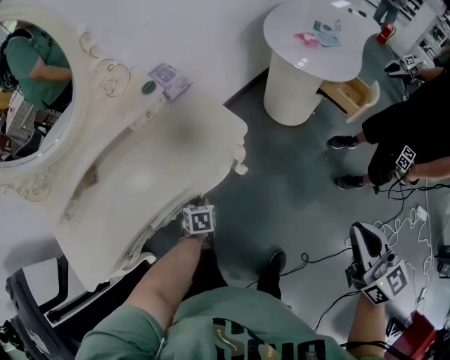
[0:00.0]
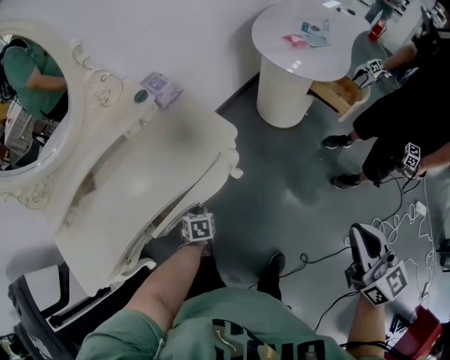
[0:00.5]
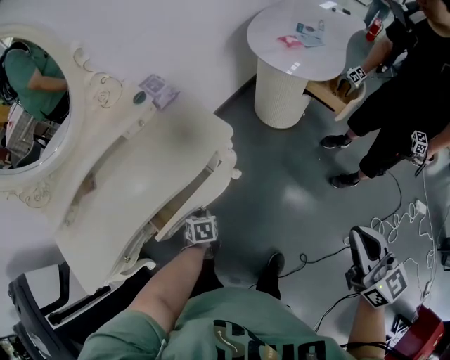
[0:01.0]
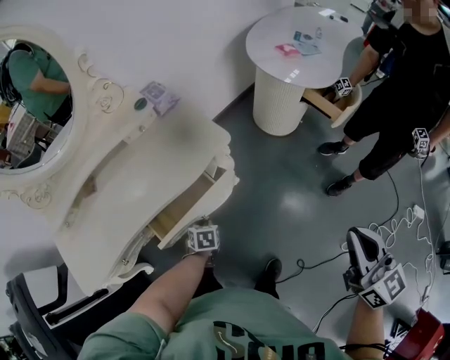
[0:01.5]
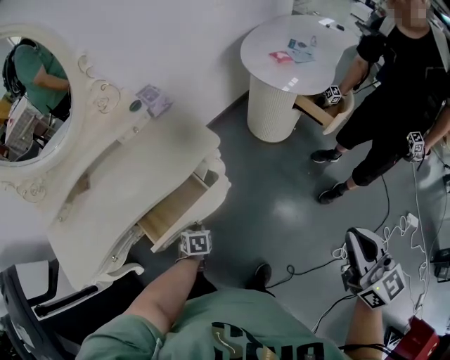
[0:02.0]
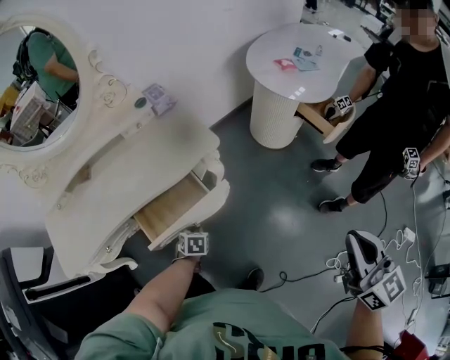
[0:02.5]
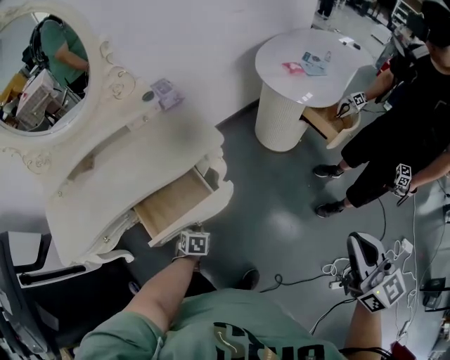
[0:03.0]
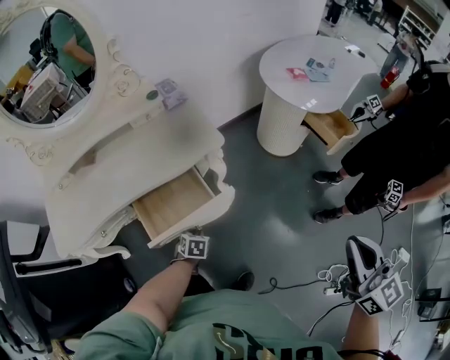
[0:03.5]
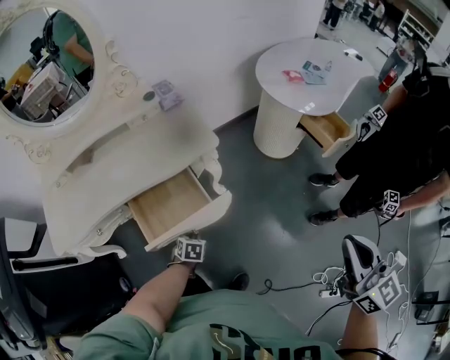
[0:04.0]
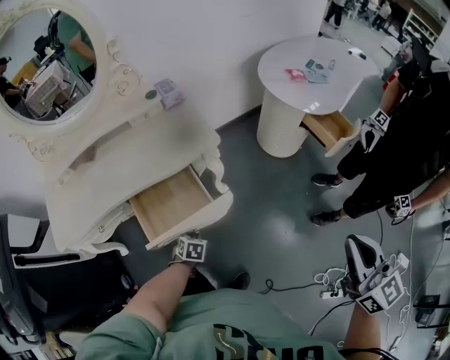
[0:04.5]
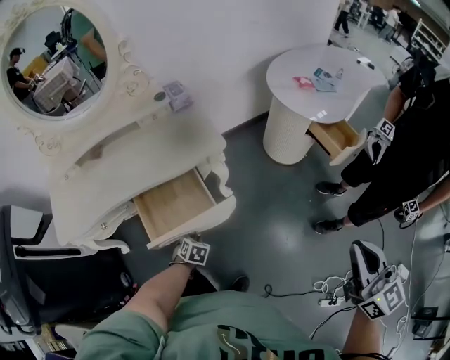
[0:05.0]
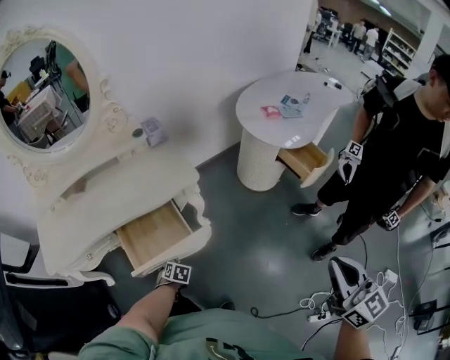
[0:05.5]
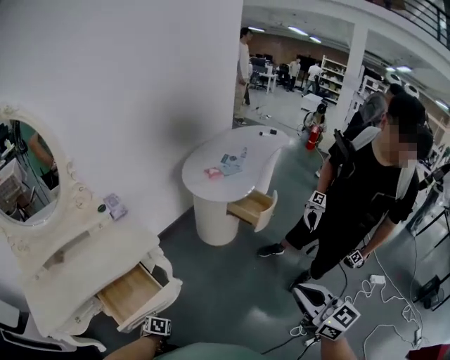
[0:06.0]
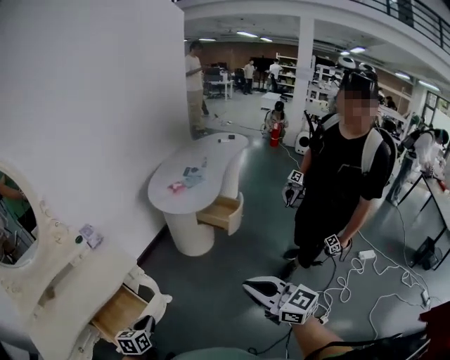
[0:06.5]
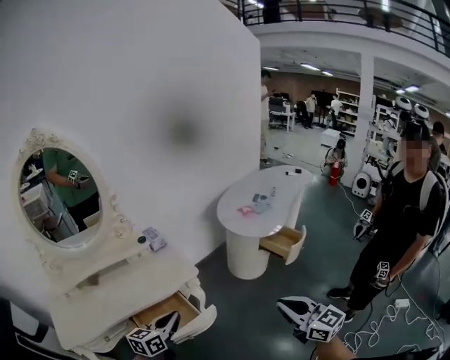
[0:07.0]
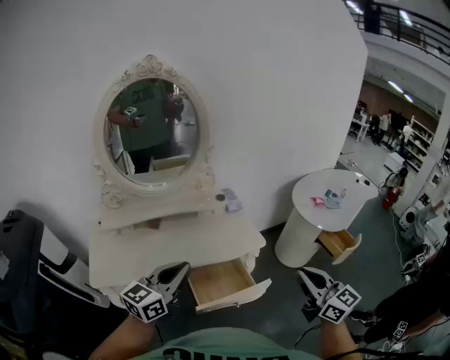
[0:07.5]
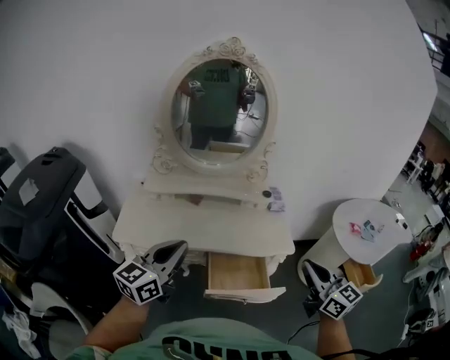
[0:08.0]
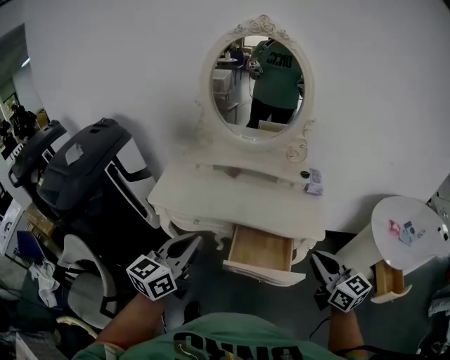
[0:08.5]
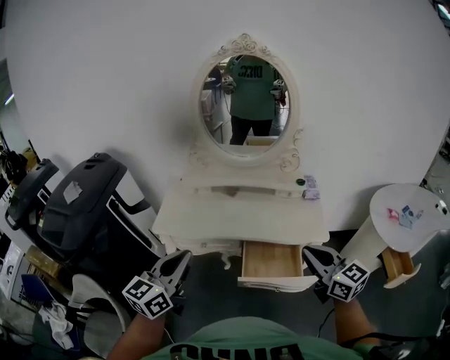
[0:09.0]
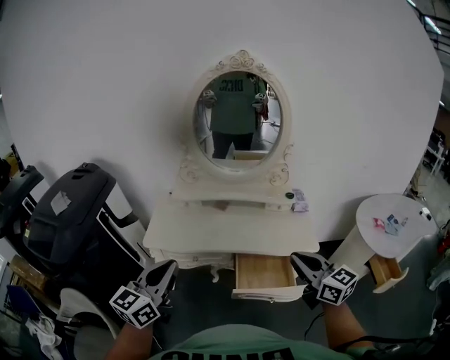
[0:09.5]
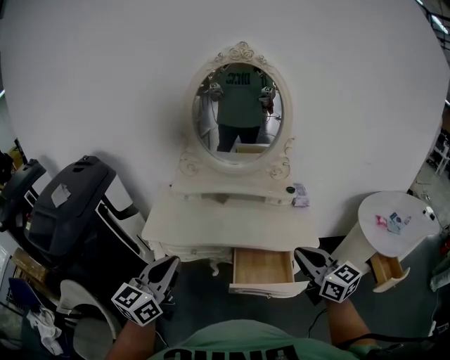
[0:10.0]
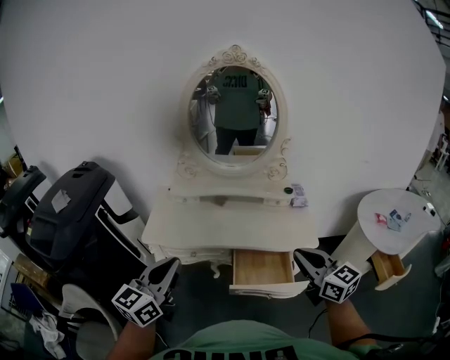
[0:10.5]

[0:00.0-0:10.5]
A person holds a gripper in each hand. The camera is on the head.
0.0 to 2.0 s: The right gripper travels to the right and backward by roughly 10 cm; the left gripper goes some 10 cm backward and to the right.
2.0 to 4.0 s: The left gripper goes approximately 5 cm backward. Meanwhile the right gripper travels to the right by roughly 5 cm.
4.0 to 6.5 s: The left gripper travels upward by some 25 cm, and points its fingers approximately 30 degrees further upward.
6.5 to 8.5 s: The left gripper shifts by approximately 40 cm, and points its fingers approximately 30 degrees further upward. The right gripper ends up about 40 cm from where it was, and changes its angle by roughly 50 degrees.
8.5 to 10.5 s: Both grippers move to the left, roughly 10 cm.

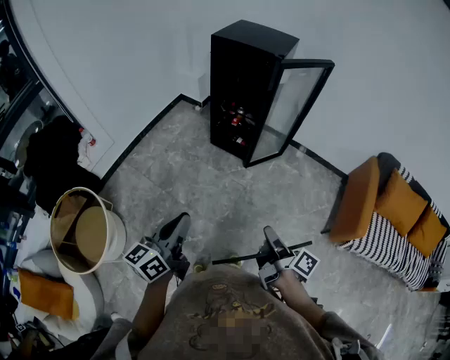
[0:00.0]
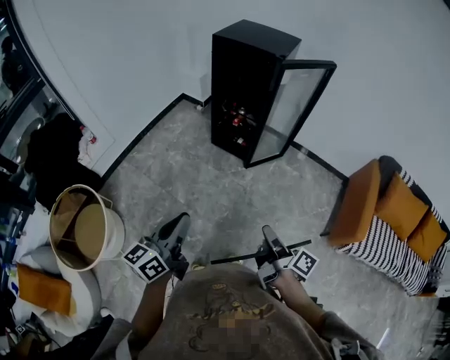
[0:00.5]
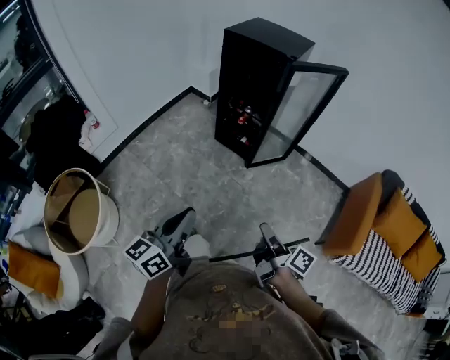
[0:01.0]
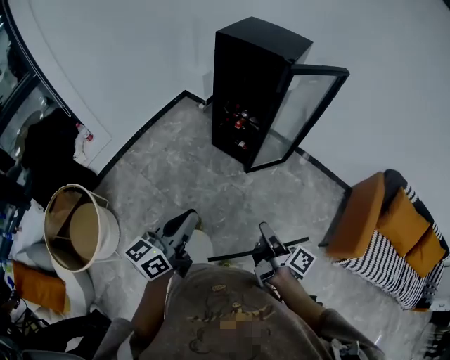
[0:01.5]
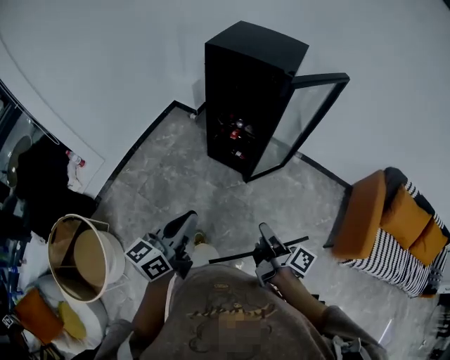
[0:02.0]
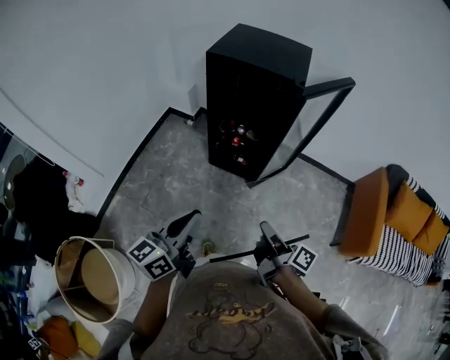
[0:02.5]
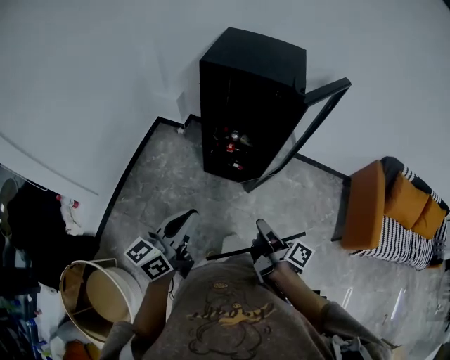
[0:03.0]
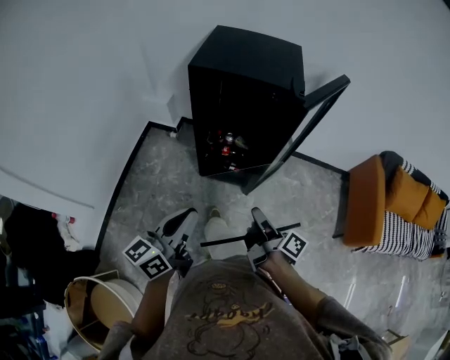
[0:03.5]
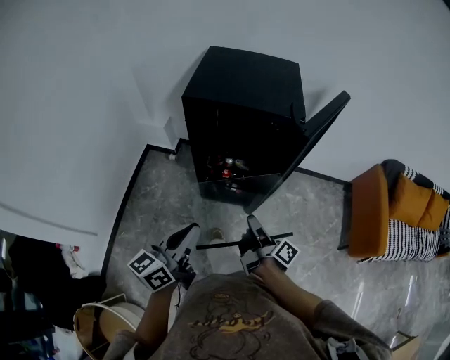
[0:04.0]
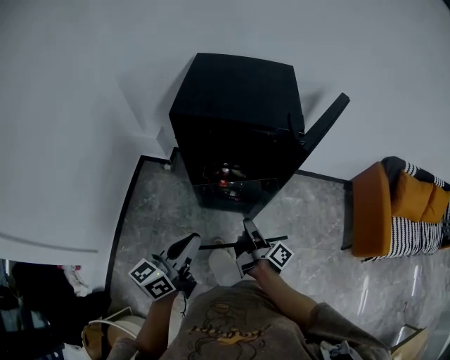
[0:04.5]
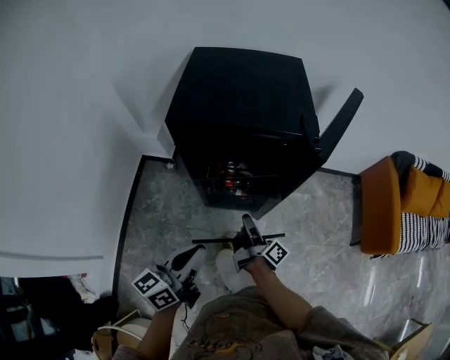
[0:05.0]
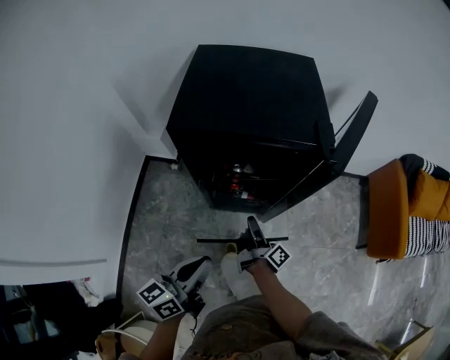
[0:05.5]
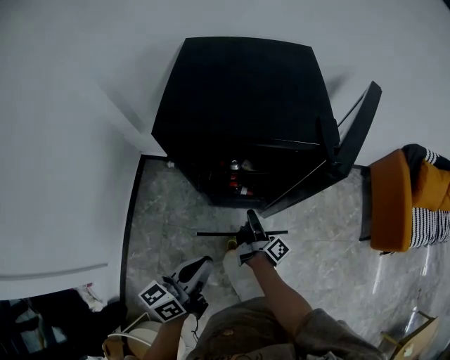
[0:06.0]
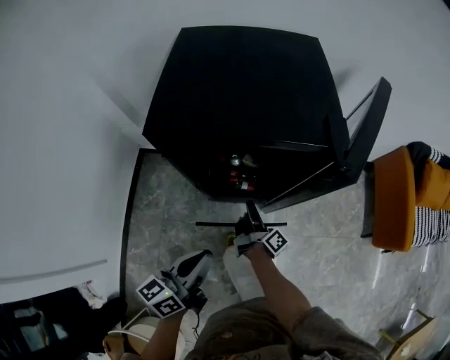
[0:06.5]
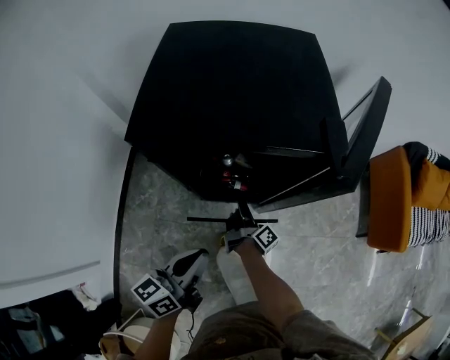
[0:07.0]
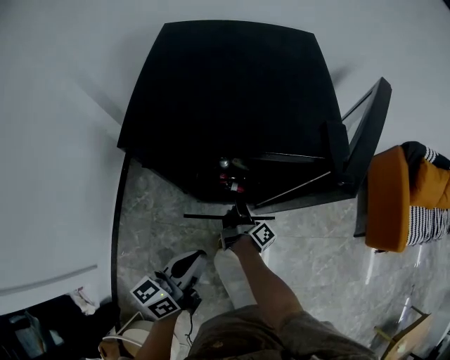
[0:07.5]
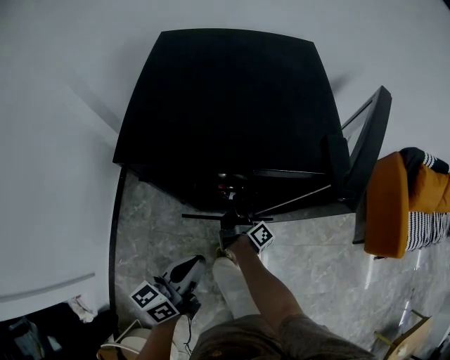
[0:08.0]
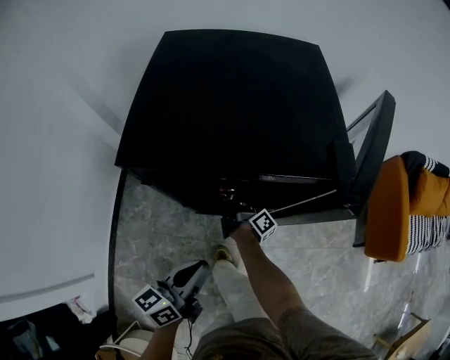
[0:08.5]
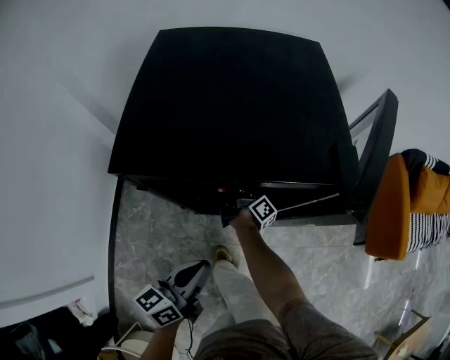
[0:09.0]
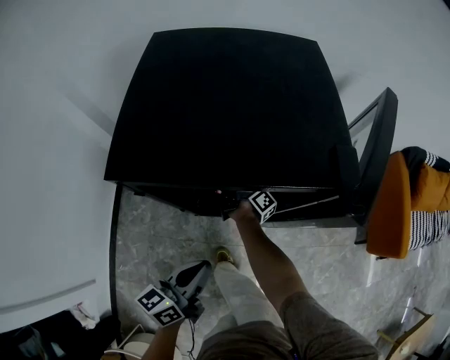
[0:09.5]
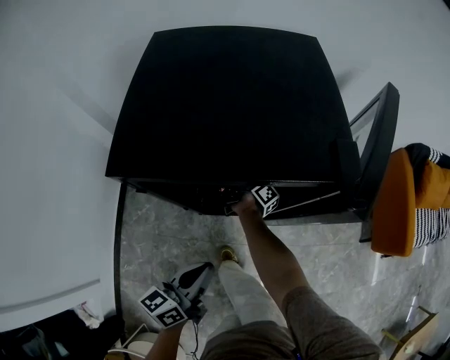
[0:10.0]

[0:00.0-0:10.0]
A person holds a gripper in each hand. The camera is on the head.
0.0 to 2.0 s: The left gripper shifts by about 20 cm.
2.0 to 4.0 s: The left gripper ends up about 30 cm from where it was.
4.0 to 6.0 s: The left gripper shifts by about 15 cm.
6.0 to 8.0 s: The left gripper changes place by about 10 cm.

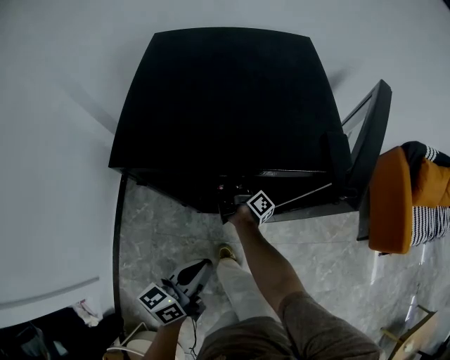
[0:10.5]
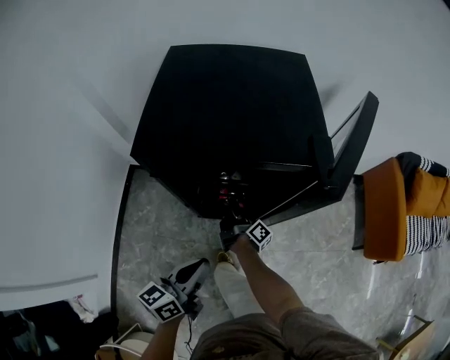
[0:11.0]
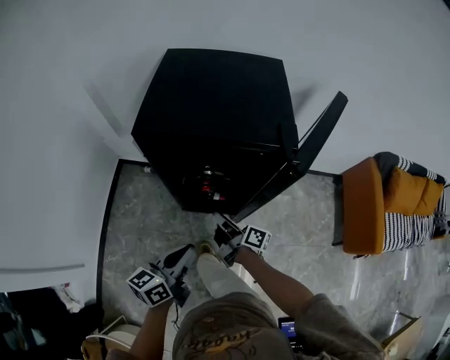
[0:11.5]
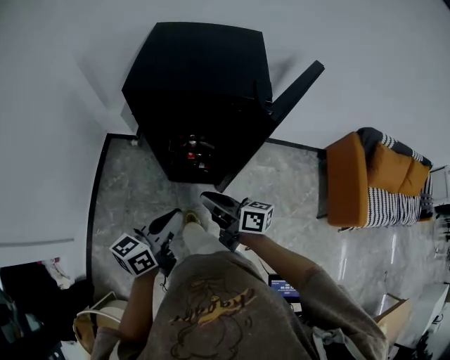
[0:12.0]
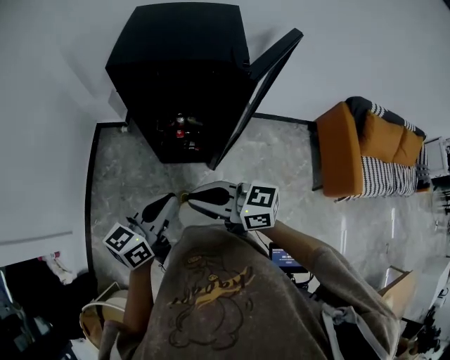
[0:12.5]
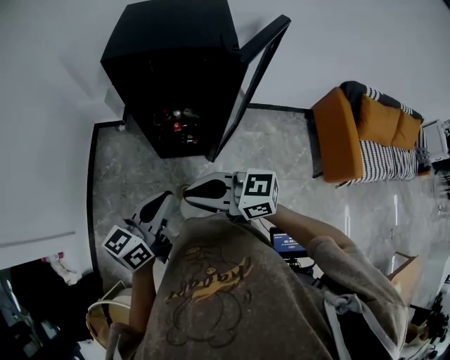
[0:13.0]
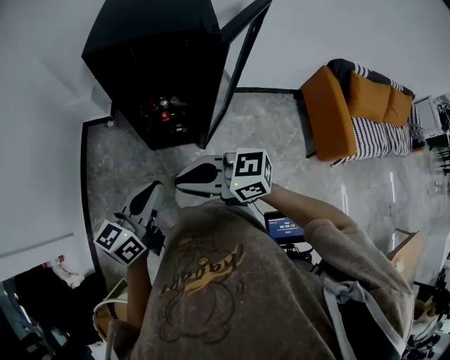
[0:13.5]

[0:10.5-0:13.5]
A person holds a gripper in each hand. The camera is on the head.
10.5 to 12.0 s: The left gripper ends up about 15 cm from where it was.
12.0 to 13.5 s: The left gripper shifts by some 10 cm.

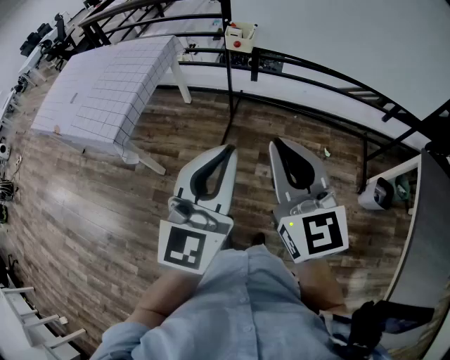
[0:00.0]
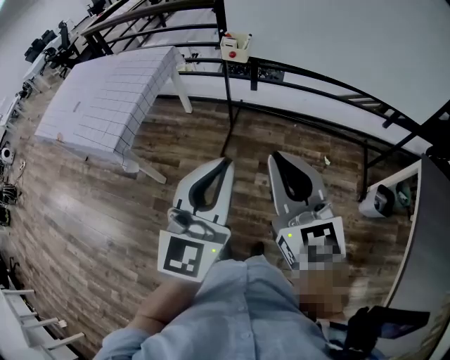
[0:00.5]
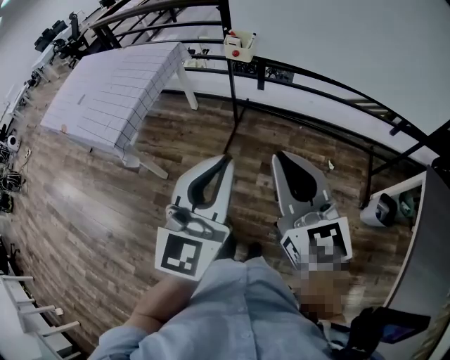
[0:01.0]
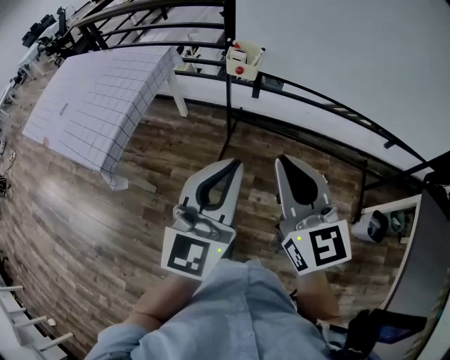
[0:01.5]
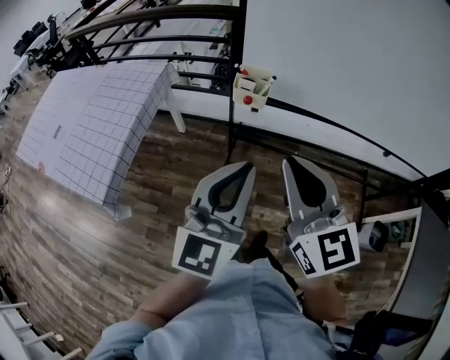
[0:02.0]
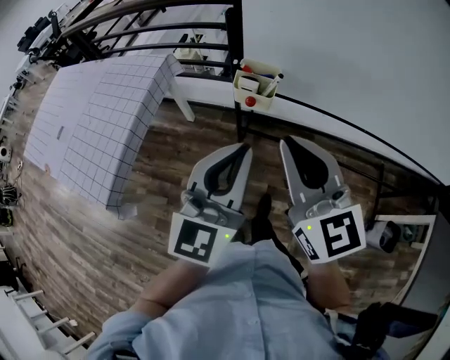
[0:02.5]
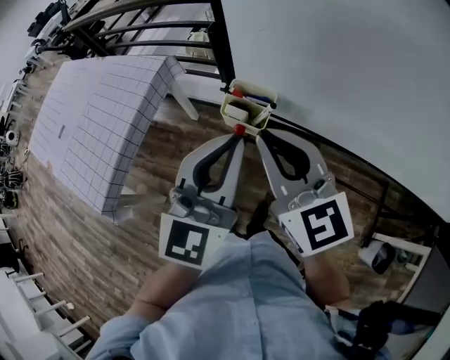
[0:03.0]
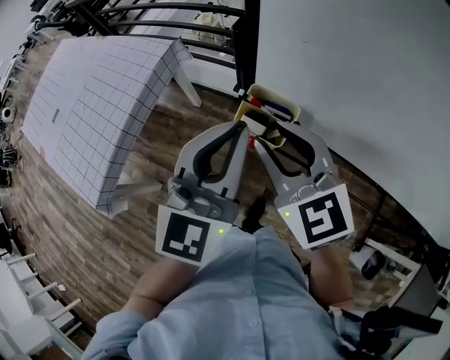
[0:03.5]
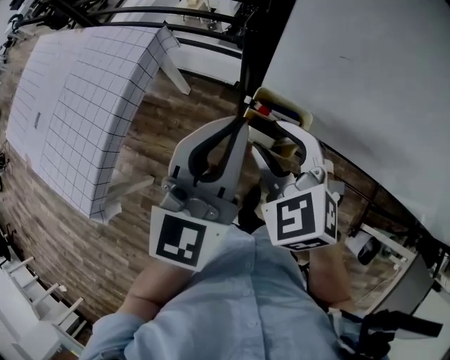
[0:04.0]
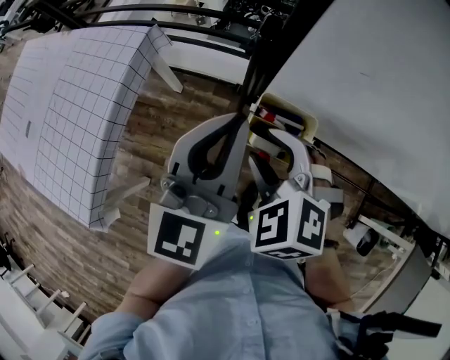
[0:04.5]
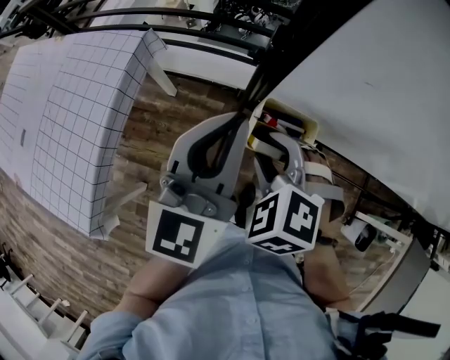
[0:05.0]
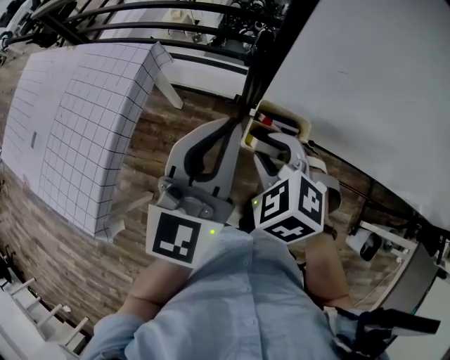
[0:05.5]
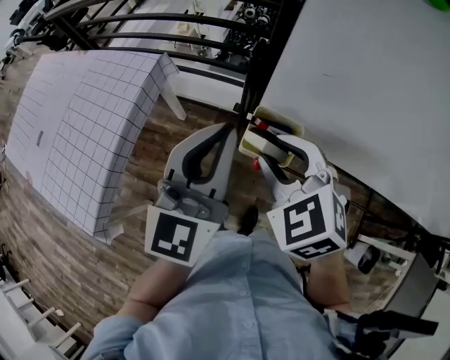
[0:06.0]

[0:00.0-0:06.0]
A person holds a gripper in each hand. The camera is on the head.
0.0 to 2.0 s: Both grippers move forward, some 25 cm.
2.0 to 4.0 s: The left gripper heads forward, covering approximately 30 cm. The right gripper moves forward and downward, roughly 35 cm, angles its fingers downward, by approximately 40 degrees, and opens.
4.0 to 6.0 s: The right gripper moves some 5 cm.
